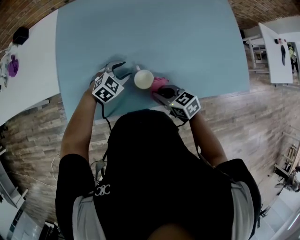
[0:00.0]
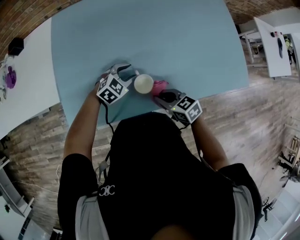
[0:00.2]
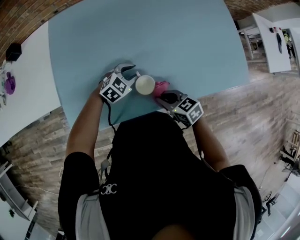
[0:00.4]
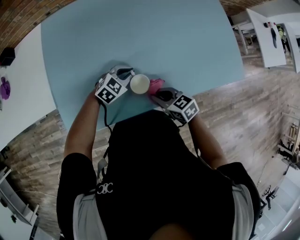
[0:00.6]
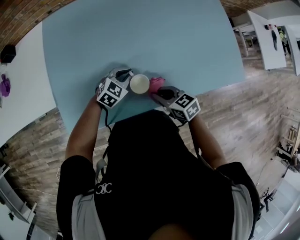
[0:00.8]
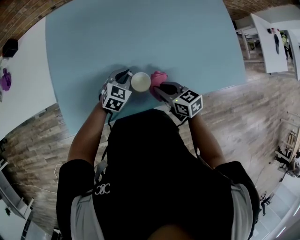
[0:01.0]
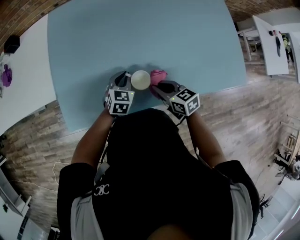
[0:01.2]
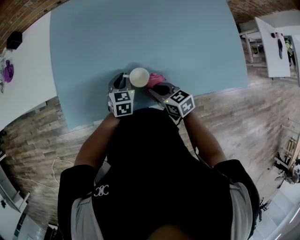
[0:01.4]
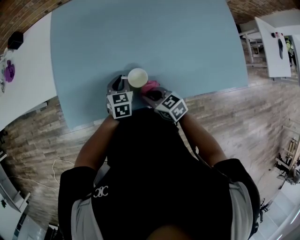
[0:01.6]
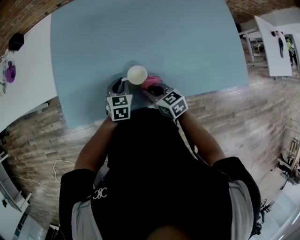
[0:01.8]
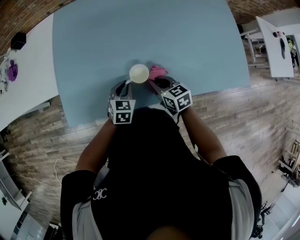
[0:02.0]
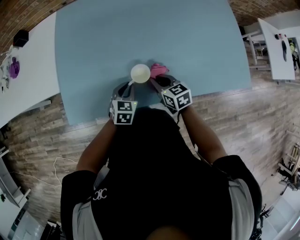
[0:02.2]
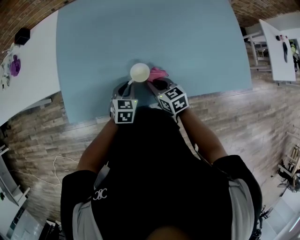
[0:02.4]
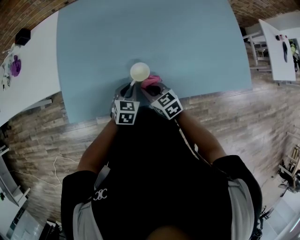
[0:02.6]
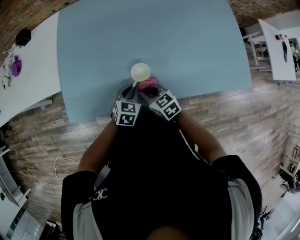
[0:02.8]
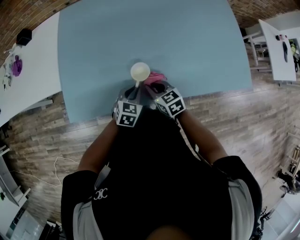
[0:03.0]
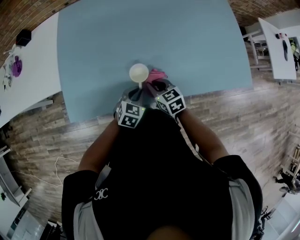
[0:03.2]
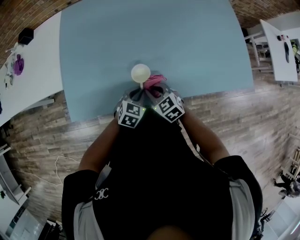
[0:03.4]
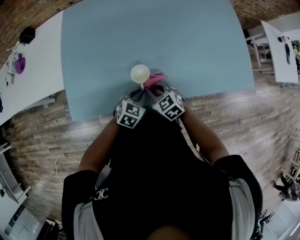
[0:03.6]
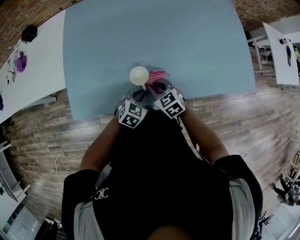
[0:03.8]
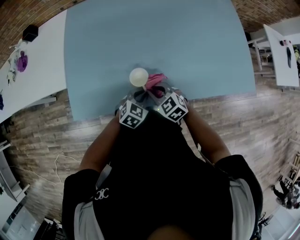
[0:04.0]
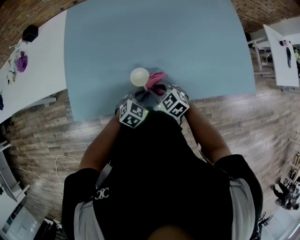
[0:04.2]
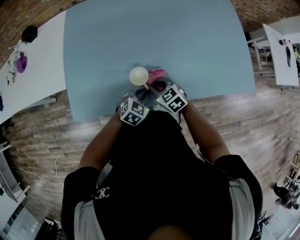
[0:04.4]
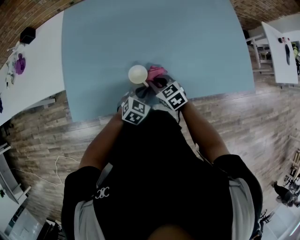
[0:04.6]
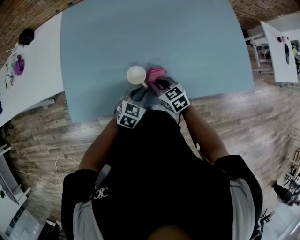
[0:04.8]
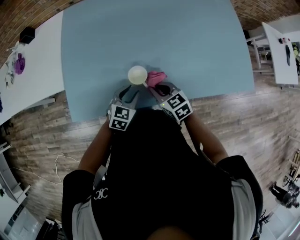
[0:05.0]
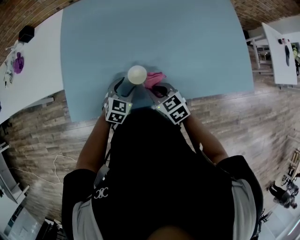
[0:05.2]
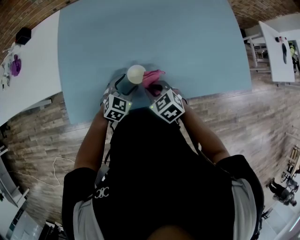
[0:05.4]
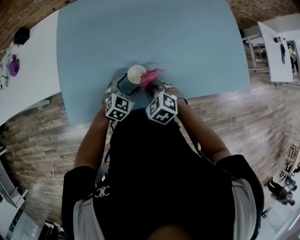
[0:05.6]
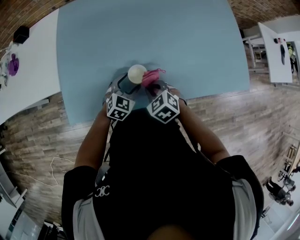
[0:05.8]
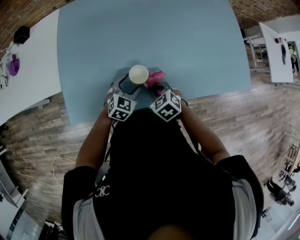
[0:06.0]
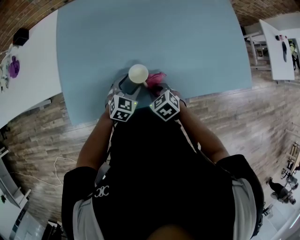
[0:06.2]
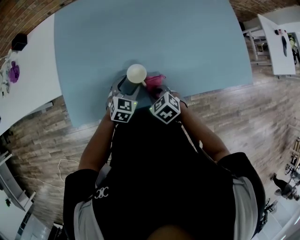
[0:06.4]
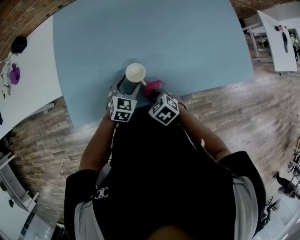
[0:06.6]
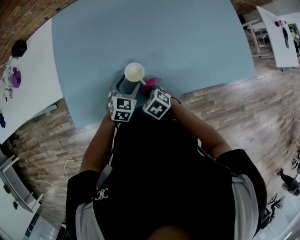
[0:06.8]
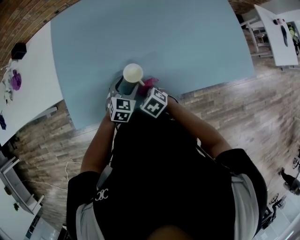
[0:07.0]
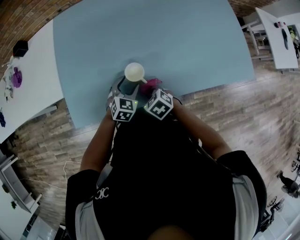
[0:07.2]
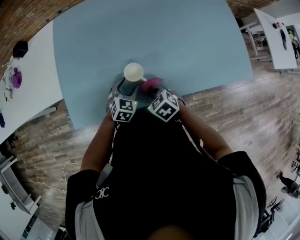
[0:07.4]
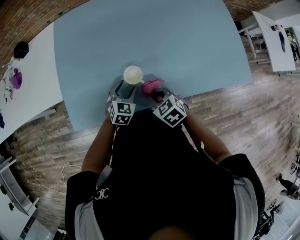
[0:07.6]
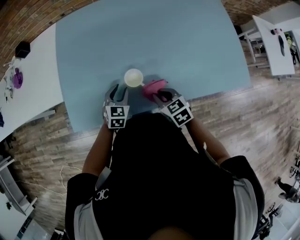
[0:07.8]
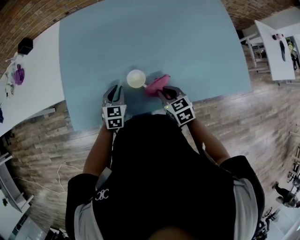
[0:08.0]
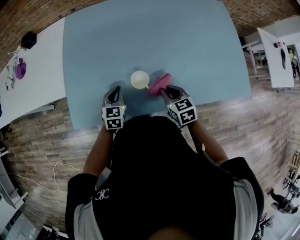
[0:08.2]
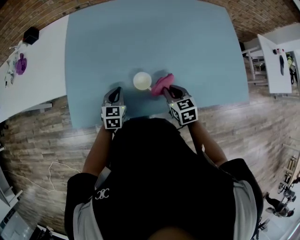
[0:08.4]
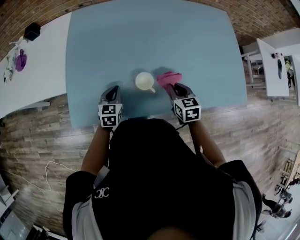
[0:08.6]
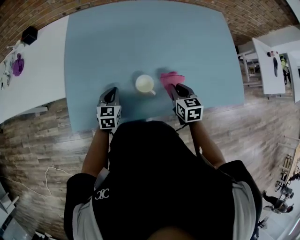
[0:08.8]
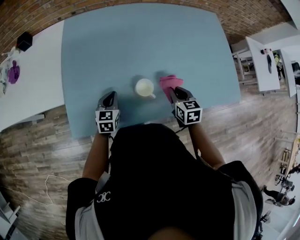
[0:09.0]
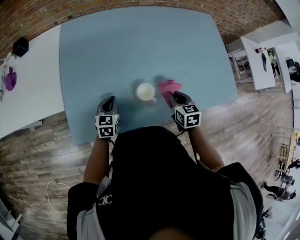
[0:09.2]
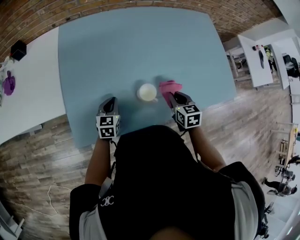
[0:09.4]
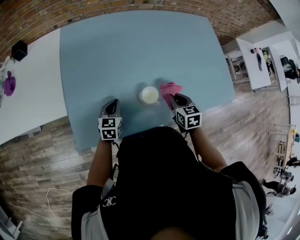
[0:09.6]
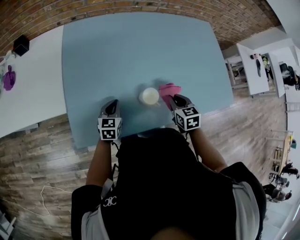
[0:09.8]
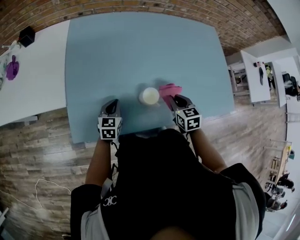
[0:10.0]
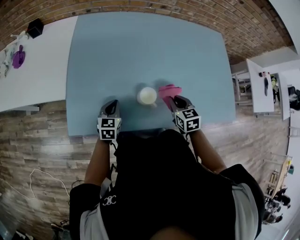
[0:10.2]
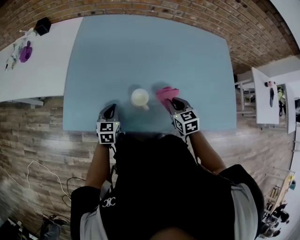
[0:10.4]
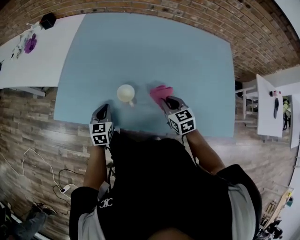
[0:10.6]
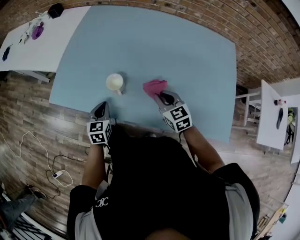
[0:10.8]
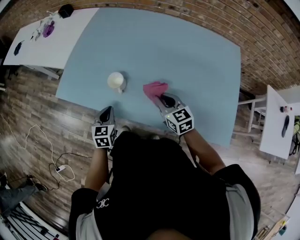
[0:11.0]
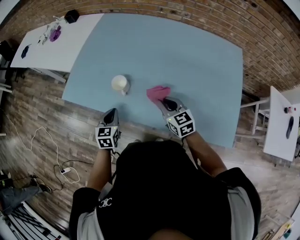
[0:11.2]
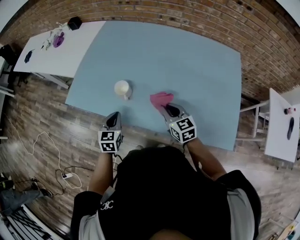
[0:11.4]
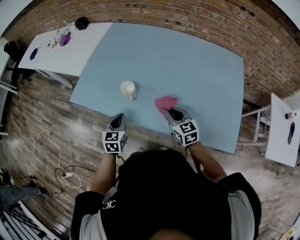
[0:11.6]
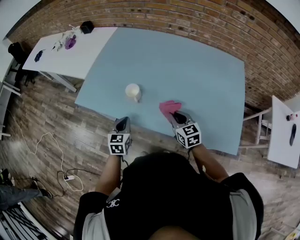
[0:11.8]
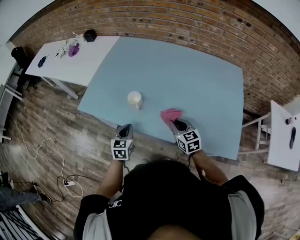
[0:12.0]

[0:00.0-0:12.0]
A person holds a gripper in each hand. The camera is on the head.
0:00.0 to 0:01.6: The left gripper rolls counterclockwise, seen from behind, by roughly 40 degrees, and closes its fingers.
0:01.6 to 0:03.0: The left gripper travels backward by roughly 10 cm.
0:04.4 to 0:06.0: The left gripper heads forward, covering roughly 5 cm, and opens.
0:07.6 to 0:09.0: The right gripper travels to the right and forward by roughly 10 cm, and turns by approximately 30 degrees; the left gripper shifts roughly 10 cm to the left, rotates about 20 degrees, and closes its fingers.
0:09.0 to 0:10.4: The left gripper shifts by approximately 5 cm, while the right gripper changes its angle by approximately 20 degrees.
0:10.4 to 0:12.0: The right gripper changes place by about 10 cm, and rotates approximately 20 degrees. The left gripper moves some 20 cm.

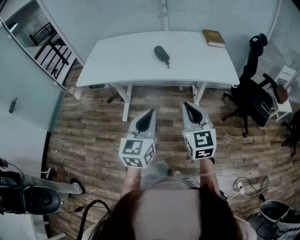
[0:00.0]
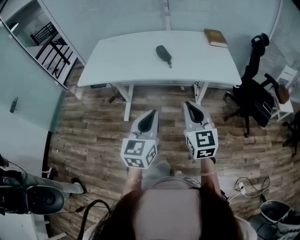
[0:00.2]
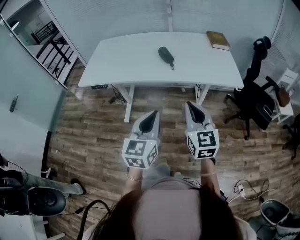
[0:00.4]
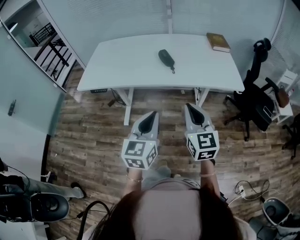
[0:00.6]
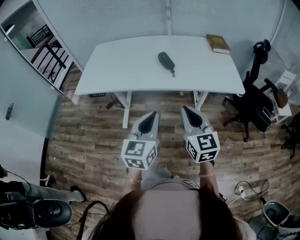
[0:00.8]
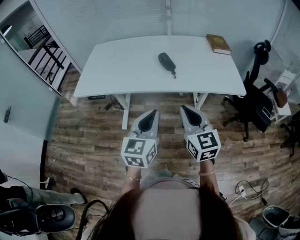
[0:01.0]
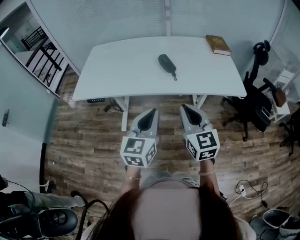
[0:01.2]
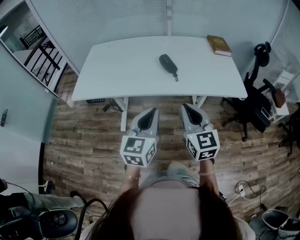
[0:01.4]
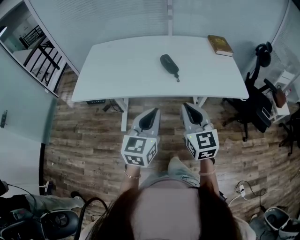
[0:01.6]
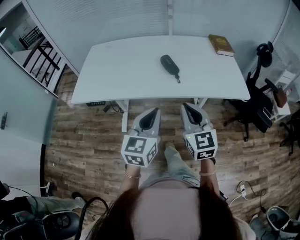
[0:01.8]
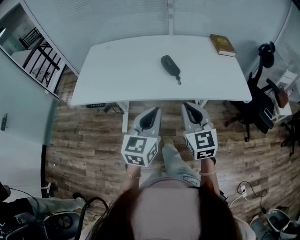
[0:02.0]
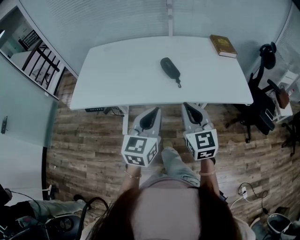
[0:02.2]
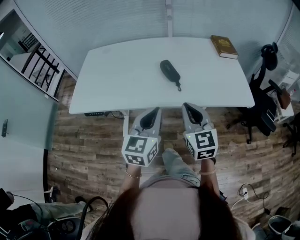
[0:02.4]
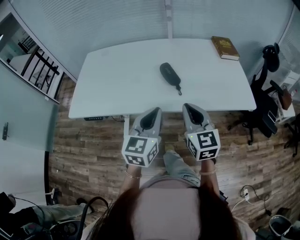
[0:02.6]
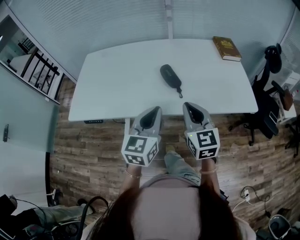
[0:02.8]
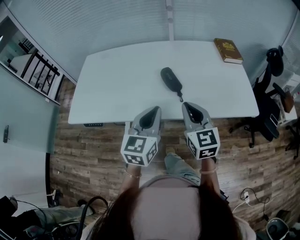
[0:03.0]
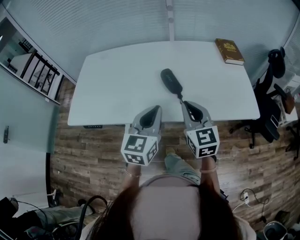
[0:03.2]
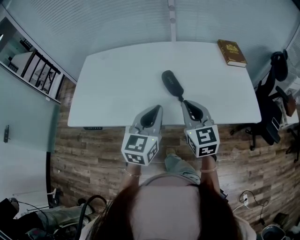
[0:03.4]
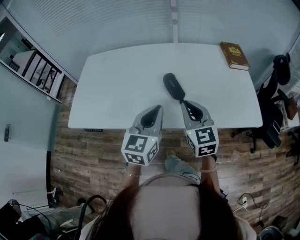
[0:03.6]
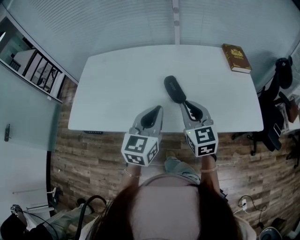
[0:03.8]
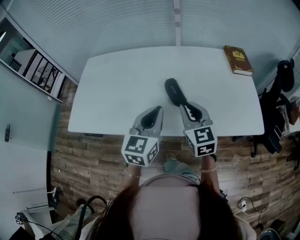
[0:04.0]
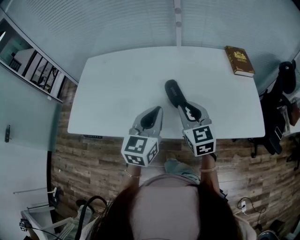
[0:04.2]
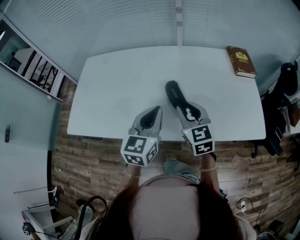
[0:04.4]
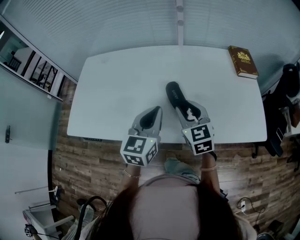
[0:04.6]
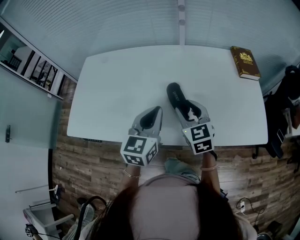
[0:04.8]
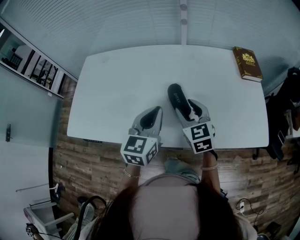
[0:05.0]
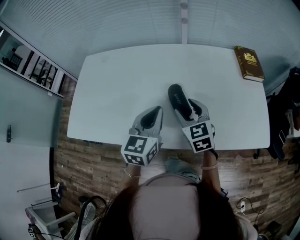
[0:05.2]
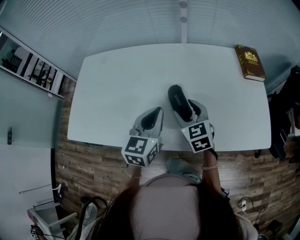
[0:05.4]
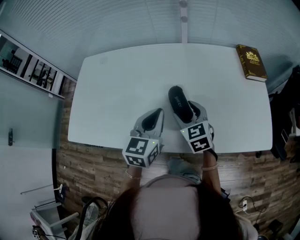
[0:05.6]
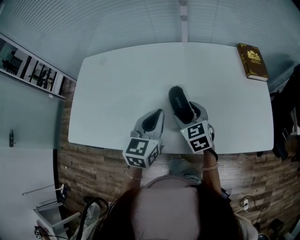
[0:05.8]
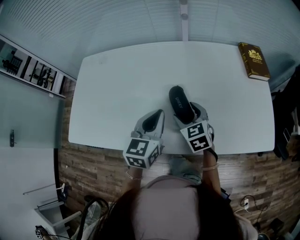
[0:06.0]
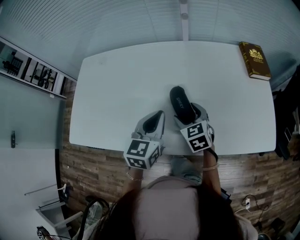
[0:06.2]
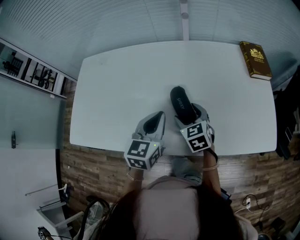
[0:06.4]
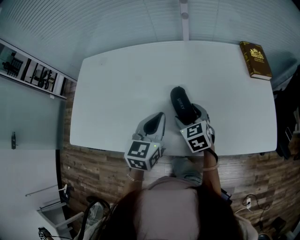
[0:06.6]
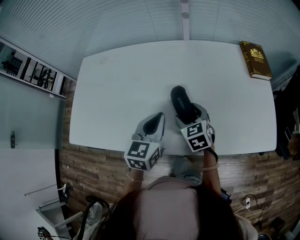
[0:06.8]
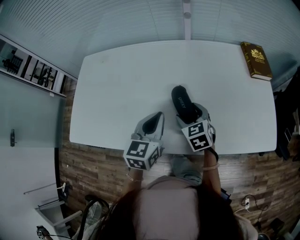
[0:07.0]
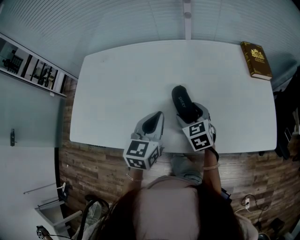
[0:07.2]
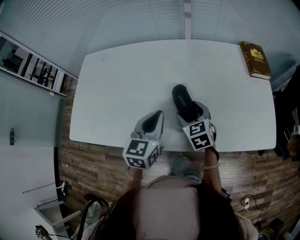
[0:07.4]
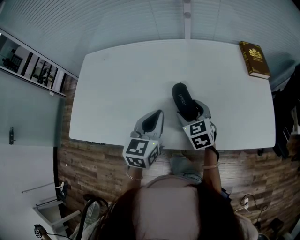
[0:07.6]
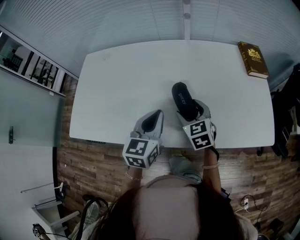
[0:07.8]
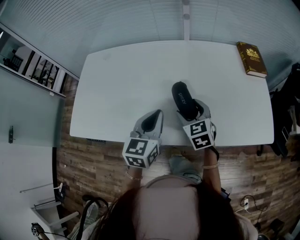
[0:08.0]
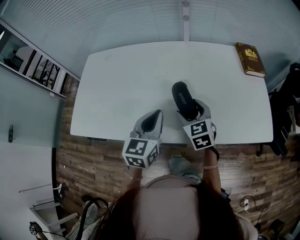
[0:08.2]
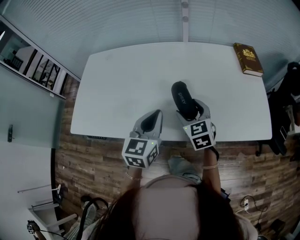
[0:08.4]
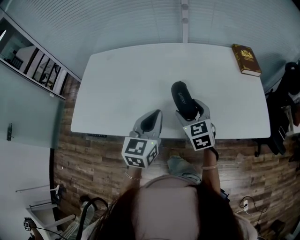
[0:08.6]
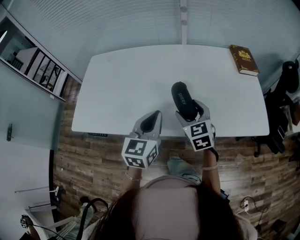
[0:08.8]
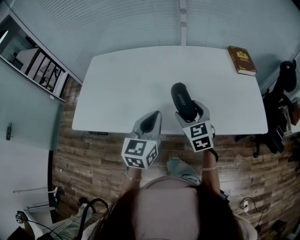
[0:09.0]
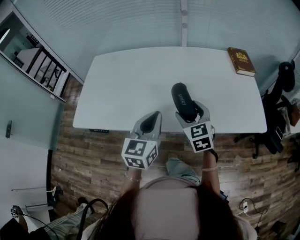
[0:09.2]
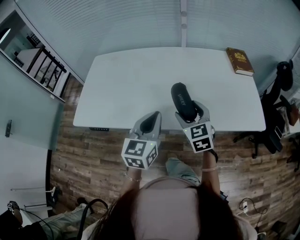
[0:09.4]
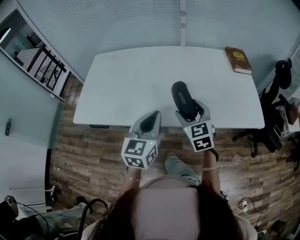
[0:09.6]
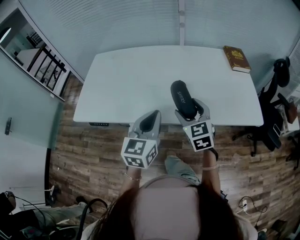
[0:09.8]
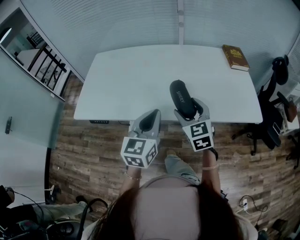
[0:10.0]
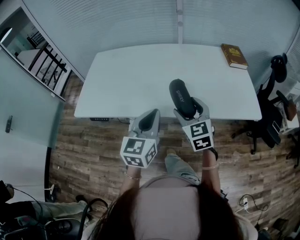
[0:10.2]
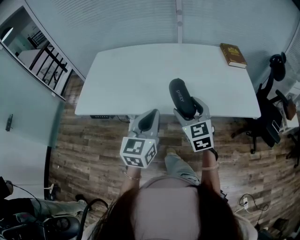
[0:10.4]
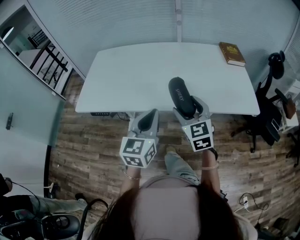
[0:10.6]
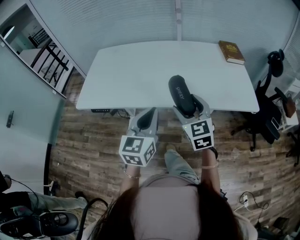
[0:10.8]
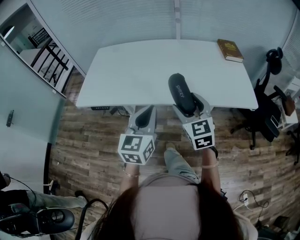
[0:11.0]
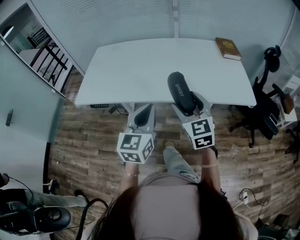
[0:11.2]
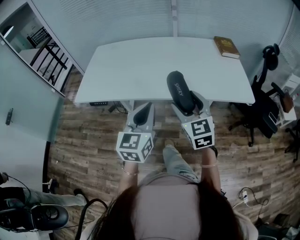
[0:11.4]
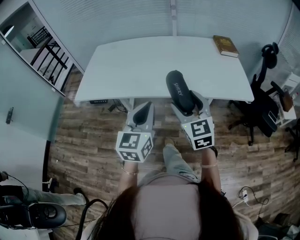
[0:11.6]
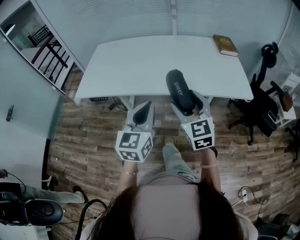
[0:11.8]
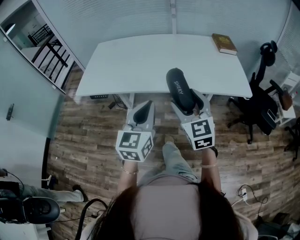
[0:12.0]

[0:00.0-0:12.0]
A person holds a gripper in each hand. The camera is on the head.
0:00.0 to 0:01.6: The grippers both shift forward and to the left by some 15 cm.
0:01.6 to 0:03.0: Both grippers travel together forward, some 15 cm.
0:03.0 to 0:04.4: The two grippers go roughly 15 cm forward.
0:04.4 to 0:06.0: The right gripper moves downward and forward, some 15 cm, and opens. Meanwhile the left gripper moves forward and downward, about 10 cm.
0:06.0 to 0:07.6: The grippers stay close to where they were, moving slightly.
0:07.6 to 0:09.0: The left gripper goes roughly 10 cm backward. The right gripper heads backward and upward, covering some 10 cm.
0:09.0 to 0:10.4: The grippers both shift backward by approximately 10 cm.
0:10.4 to 0:12.0: Both grippers travel together backward, roughly 15 cm.
